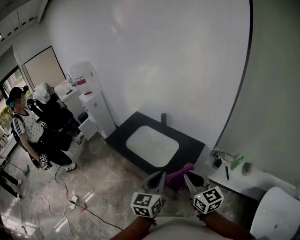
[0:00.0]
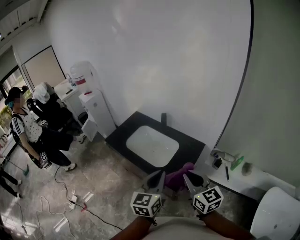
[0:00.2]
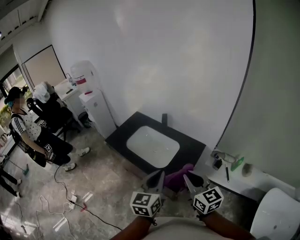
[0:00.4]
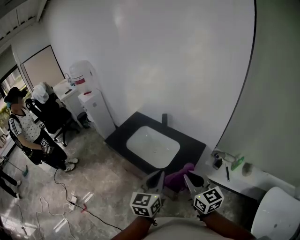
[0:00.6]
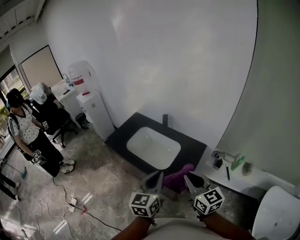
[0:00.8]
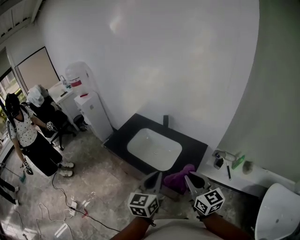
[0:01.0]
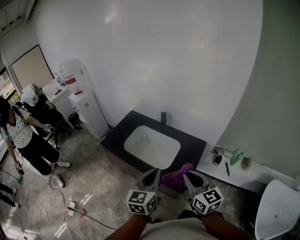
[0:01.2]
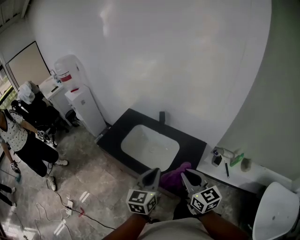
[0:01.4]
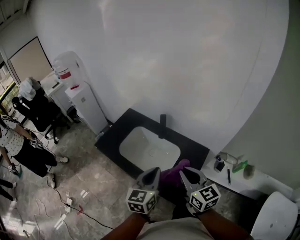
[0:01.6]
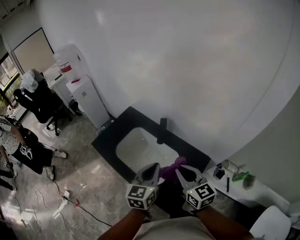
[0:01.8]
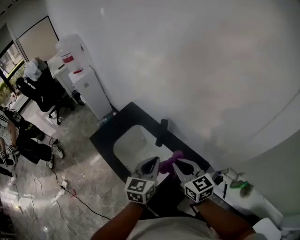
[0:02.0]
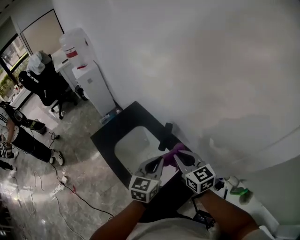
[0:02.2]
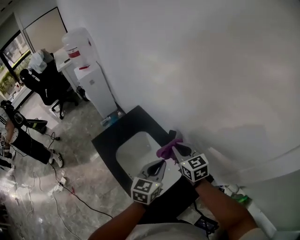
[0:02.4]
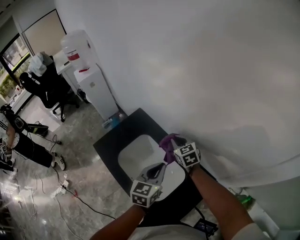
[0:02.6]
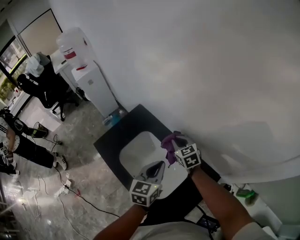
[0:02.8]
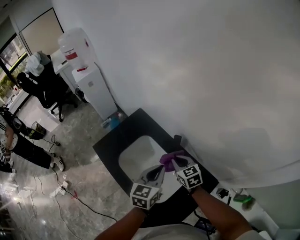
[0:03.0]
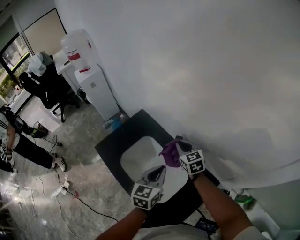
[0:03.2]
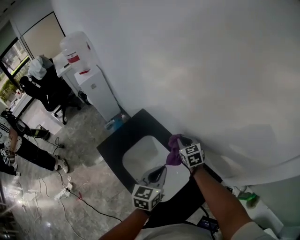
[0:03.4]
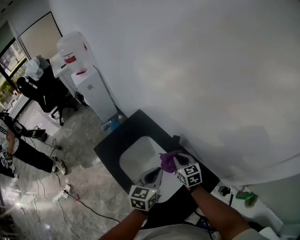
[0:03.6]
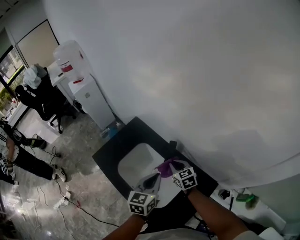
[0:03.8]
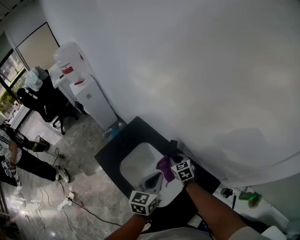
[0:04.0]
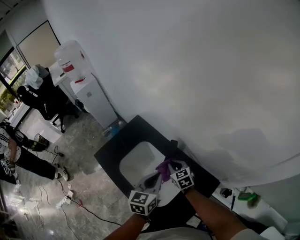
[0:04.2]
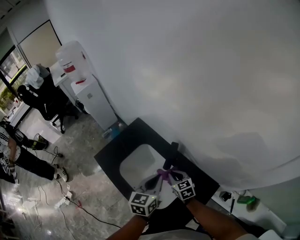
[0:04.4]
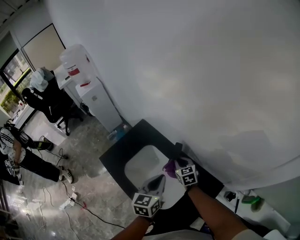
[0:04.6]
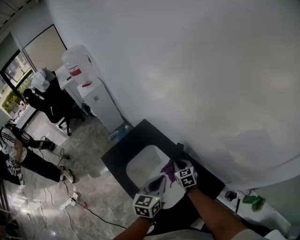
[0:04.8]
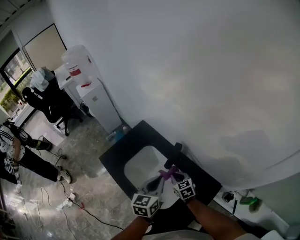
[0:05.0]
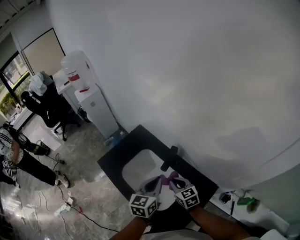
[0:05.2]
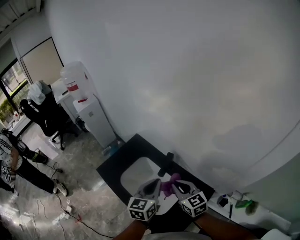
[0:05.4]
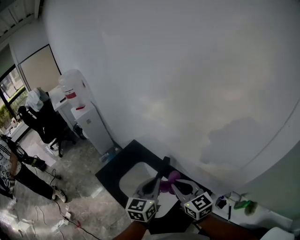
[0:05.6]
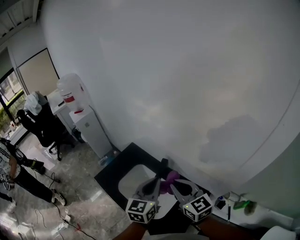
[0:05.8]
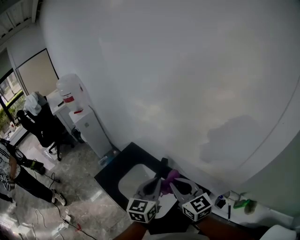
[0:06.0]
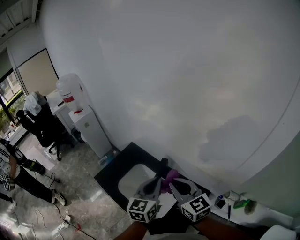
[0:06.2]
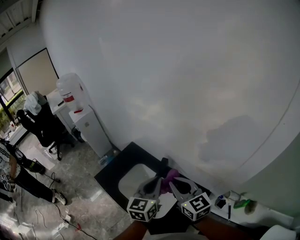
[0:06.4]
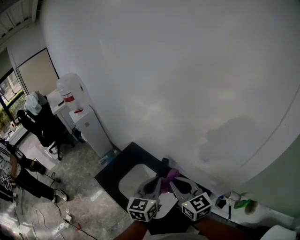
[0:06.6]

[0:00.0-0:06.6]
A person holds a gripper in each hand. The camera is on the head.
0:00.0 to 0:01.6: Both grippers travel together forward, about 20 cm.
0:01.6 to 0:03.2: The left gripper shifts approximately 25 cm forward. The right gripper goes forward and backward, about 40 cm each way, reversing 2 times, and swivels approximately 20 degrees.
0:03.2 to 0:05.0: The right gripper moves forward and backward over some 15 cm, changing direction 4 times.
0:05.0 to 0:06.6: The left gripper goes roughly 15 cm upward; the right gripper is displaced upward by roughly 30 cm, and changes its angle by some 30 degrees.

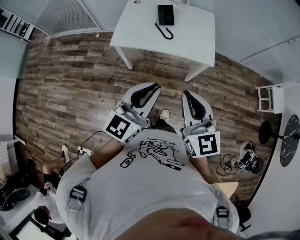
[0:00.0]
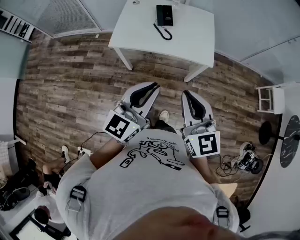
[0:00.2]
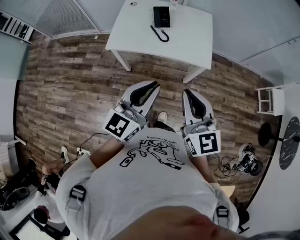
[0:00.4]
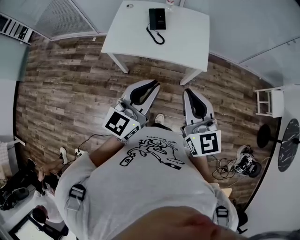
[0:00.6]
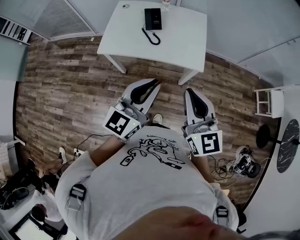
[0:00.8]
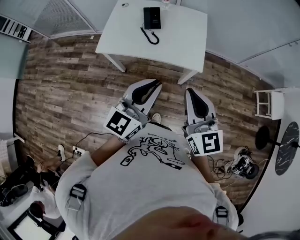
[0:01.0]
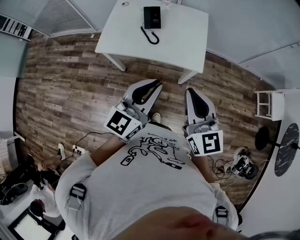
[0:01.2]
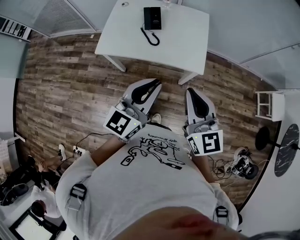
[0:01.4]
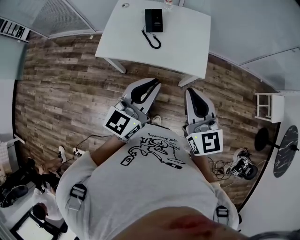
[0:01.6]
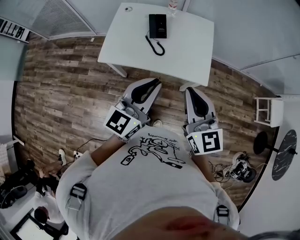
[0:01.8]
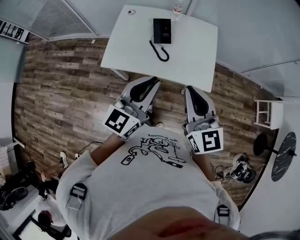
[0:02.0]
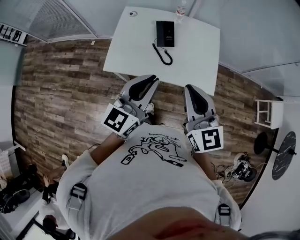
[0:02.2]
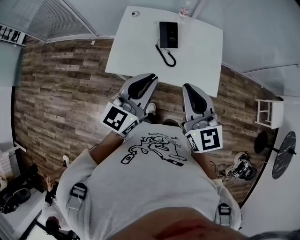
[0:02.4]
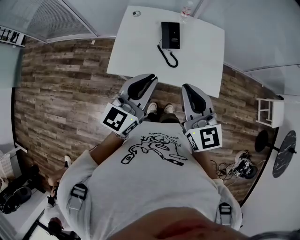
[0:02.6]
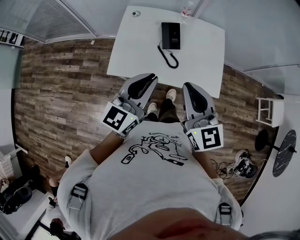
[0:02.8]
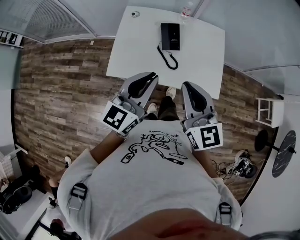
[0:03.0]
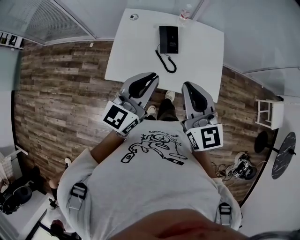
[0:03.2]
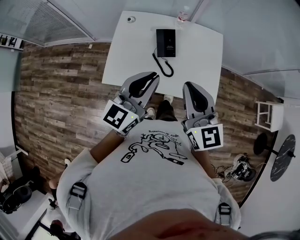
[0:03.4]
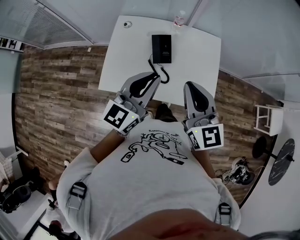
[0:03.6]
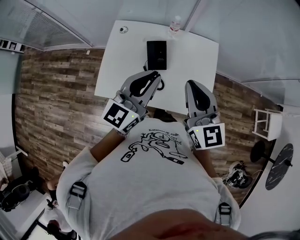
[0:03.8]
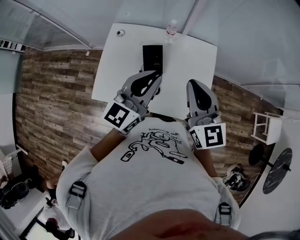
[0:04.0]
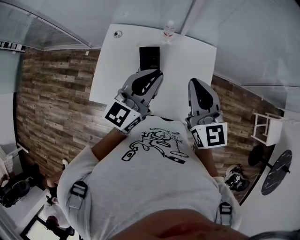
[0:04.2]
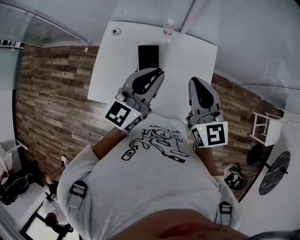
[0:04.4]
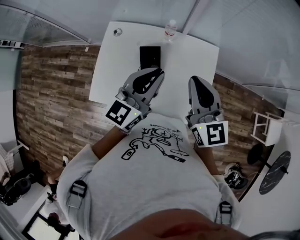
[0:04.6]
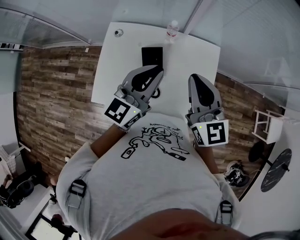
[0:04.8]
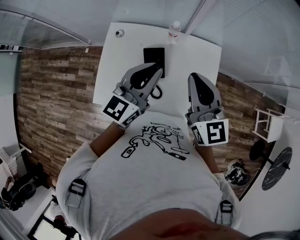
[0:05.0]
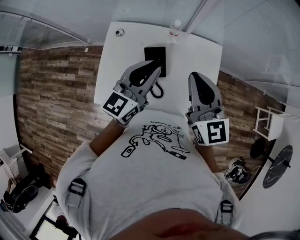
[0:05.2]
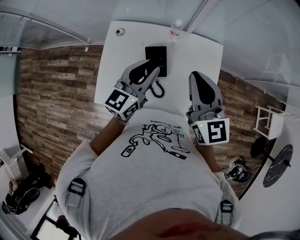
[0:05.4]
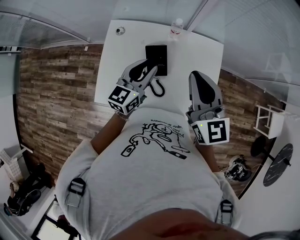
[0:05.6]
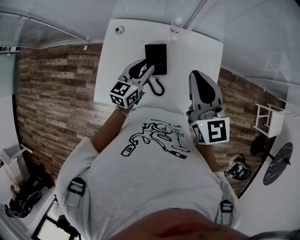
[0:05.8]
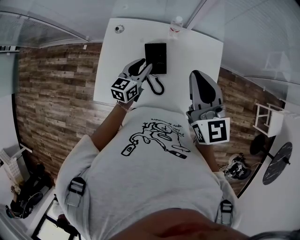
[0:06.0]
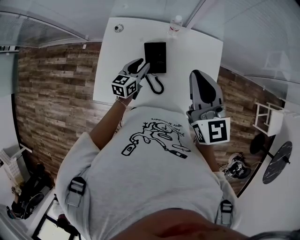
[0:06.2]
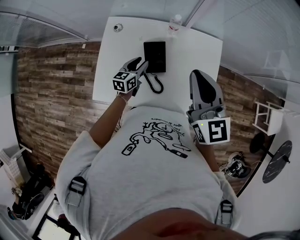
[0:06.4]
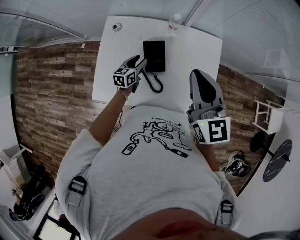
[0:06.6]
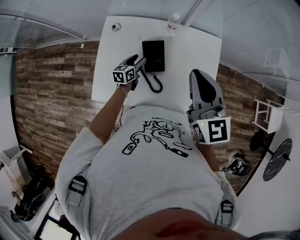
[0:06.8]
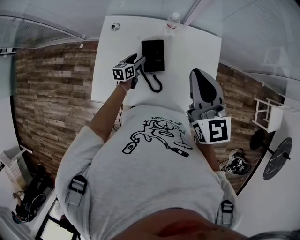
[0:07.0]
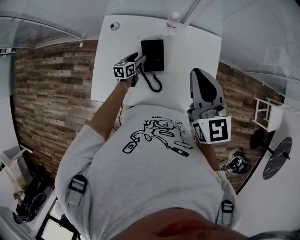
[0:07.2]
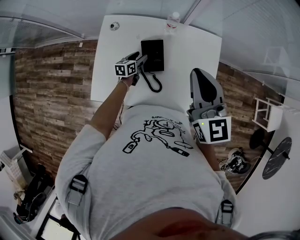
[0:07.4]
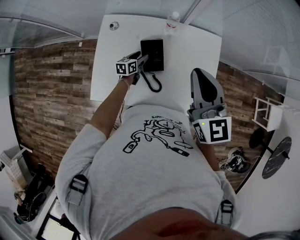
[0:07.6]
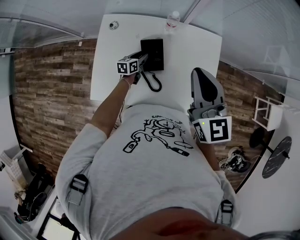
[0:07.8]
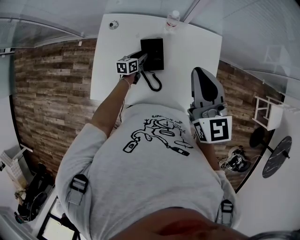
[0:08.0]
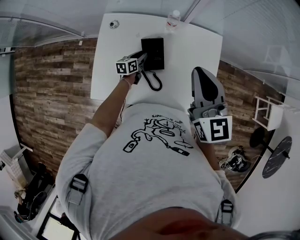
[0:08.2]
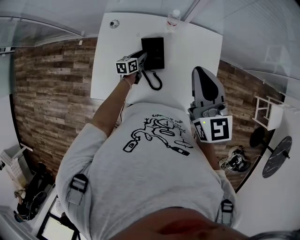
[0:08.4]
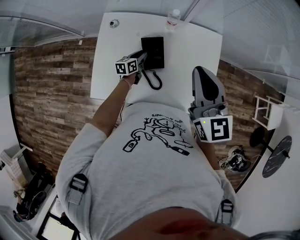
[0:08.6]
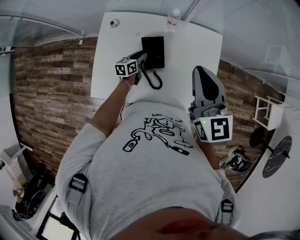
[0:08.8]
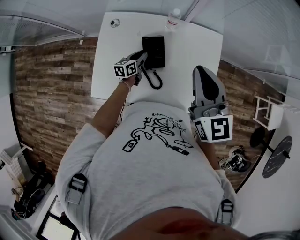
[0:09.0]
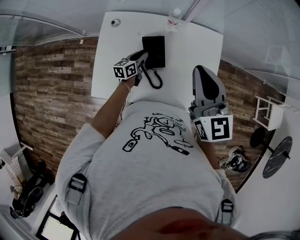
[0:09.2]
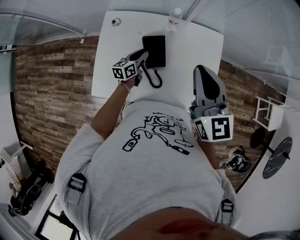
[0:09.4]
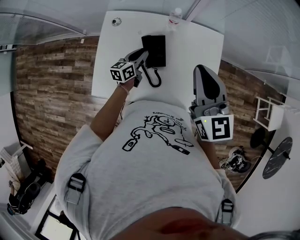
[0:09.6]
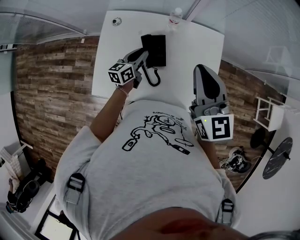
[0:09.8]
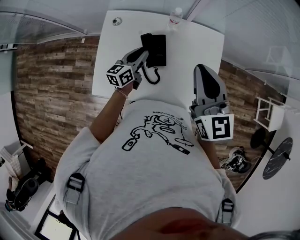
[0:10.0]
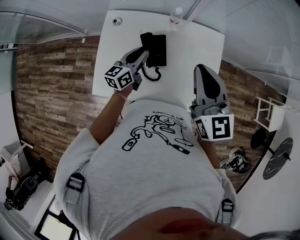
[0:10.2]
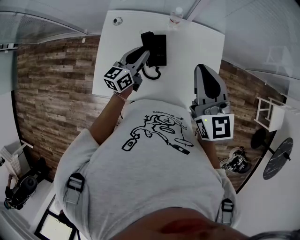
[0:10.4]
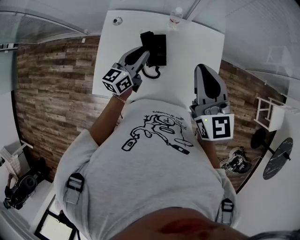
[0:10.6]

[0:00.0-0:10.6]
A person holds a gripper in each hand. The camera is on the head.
0:00.0 to 0:01.6: Both grippers move forward and to the right, roughly 20 cm.
0:01.6 to 0:03.0: Both grippers move to the left and forward, roughly 25 cm.
0:03.0 to 0:04.6: The two grippers go about 30 cm forward and to the right.
0:04.6 to 0:06.0: The right gripper is displaced to the left by roughly 5 cm. The left gripper goes approximately 20 cm downward and to the left, changes its angle by some 20 degrees, and opens.
0:06.0 to 0:07.6: The left gripper shifts approximately 20 cm downward, rotates about 20 degrees, and opens.
0:07.6 to 0:09.0: The left gripper closes.
0:09.0 to 0:10.6: The left gripper heads upward, covering about 20 cm, and rotates about 20 degrees.

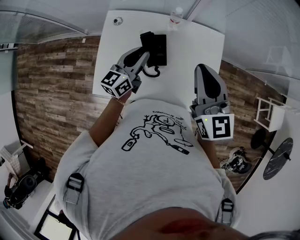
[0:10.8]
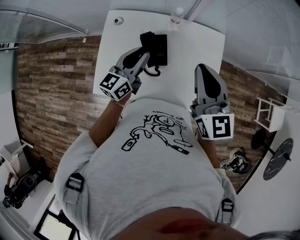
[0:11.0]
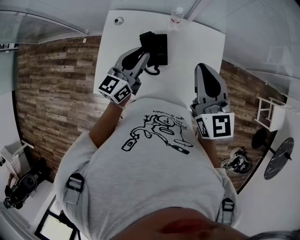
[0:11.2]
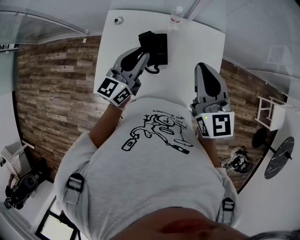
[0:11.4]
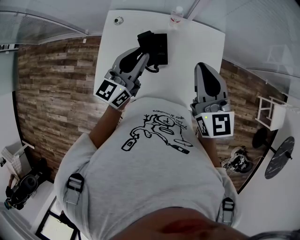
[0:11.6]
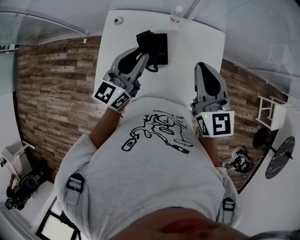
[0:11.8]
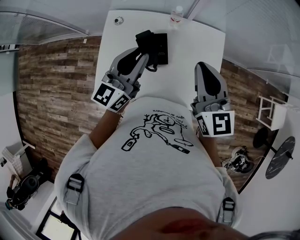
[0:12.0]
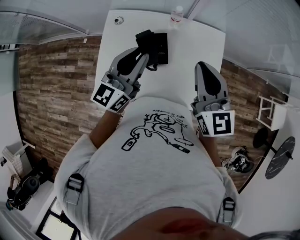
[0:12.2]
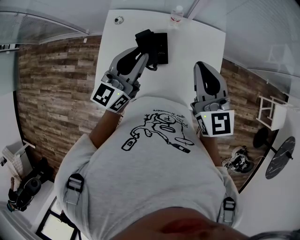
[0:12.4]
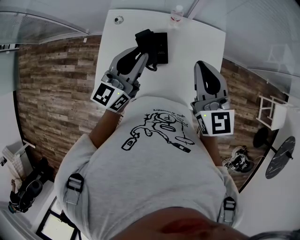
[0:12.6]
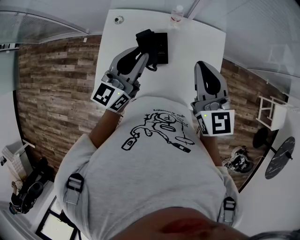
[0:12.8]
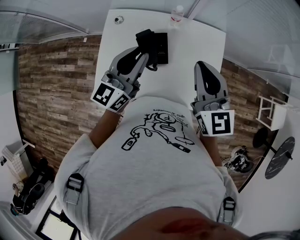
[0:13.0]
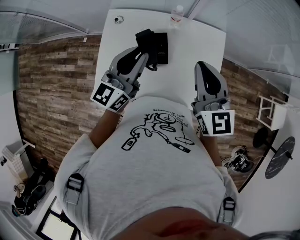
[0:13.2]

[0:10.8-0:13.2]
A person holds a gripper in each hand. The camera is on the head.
0:10.8 to 0:12.0: The left gripper moves upward, some 10 cm.
0:12.0 to 0:13.2: Both grippers stay about where they are.

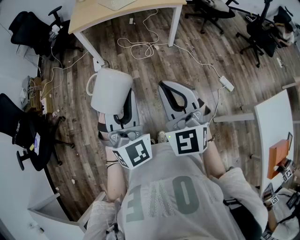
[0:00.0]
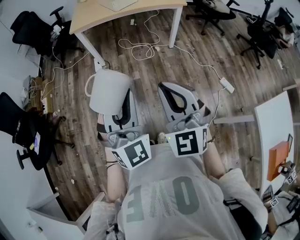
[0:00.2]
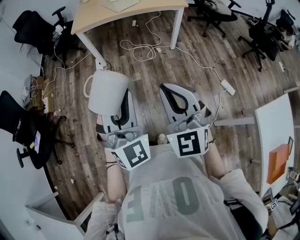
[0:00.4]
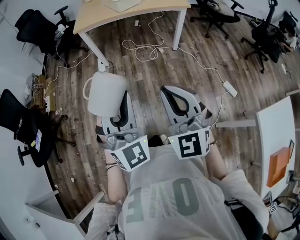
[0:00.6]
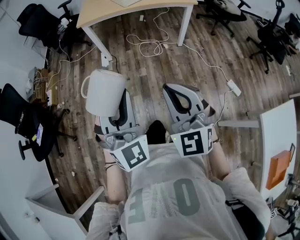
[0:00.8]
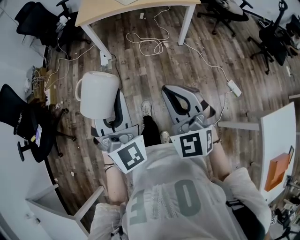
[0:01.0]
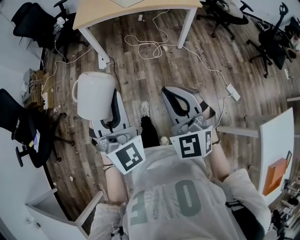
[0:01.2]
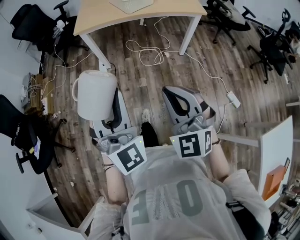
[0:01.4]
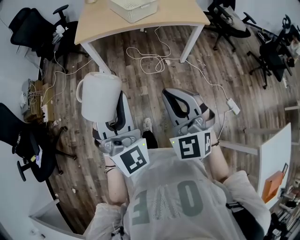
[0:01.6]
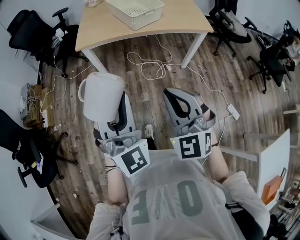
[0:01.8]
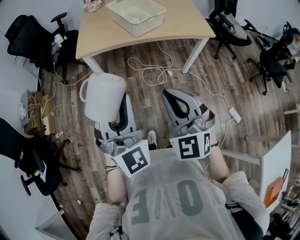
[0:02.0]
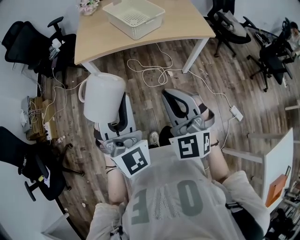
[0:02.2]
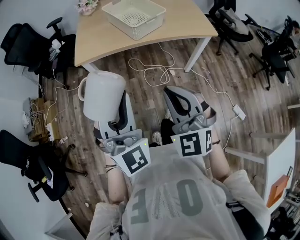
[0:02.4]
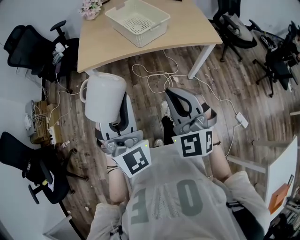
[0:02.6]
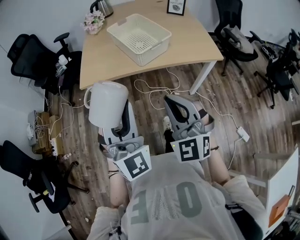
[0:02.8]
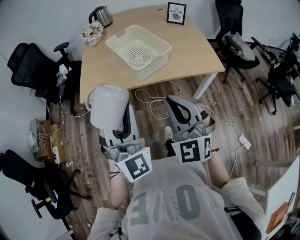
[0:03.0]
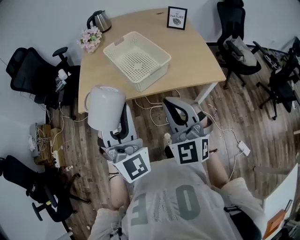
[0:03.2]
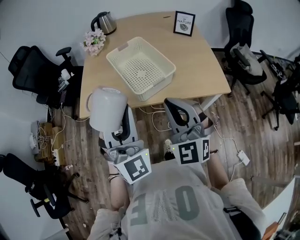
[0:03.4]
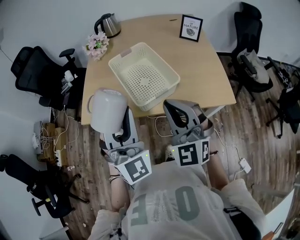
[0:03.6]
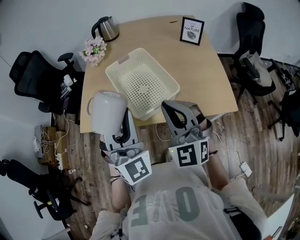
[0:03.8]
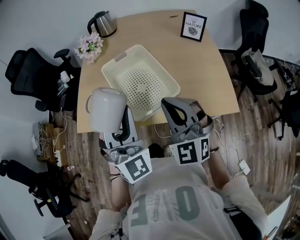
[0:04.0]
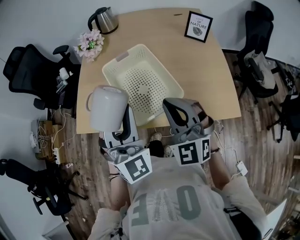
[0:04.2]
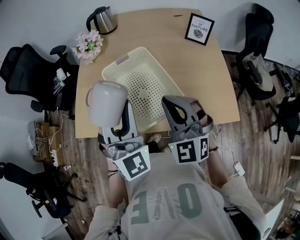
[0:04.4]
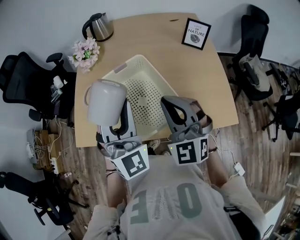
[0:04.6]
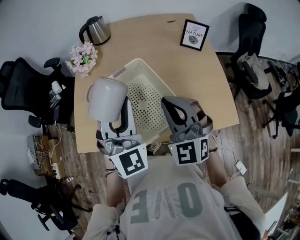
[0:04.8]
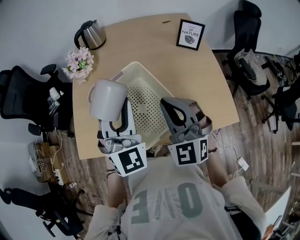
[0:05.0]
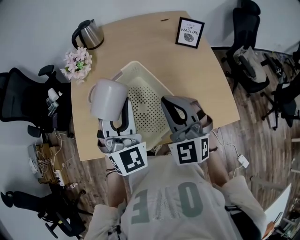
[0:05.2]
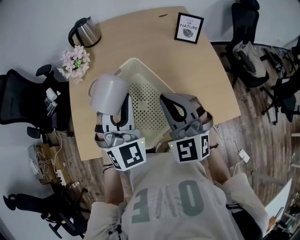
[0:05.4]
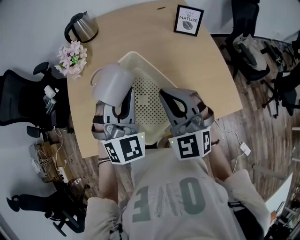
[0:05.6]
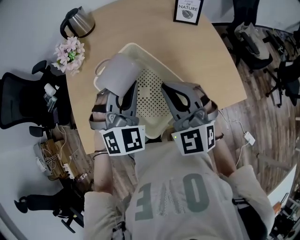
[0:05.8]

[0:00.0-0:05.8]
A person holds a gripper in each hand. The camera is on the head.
0:00.0 to 0:01.4: Both grippers move forward, roughly 15 cm.
0:01.4 to 0:02.8: Both grippers travel together forward, roughly 30 cm.
0:02.8 to 0:04.4: Both grippers travel together forward, roughly 40 cm.
0:04.4 to 0:05.8: The left gripper heads forward and downward, covering roughly 15 cm, and changes its angle by approximately 40 degrees, while the right gripper heads forward, covering about 5 cm.
